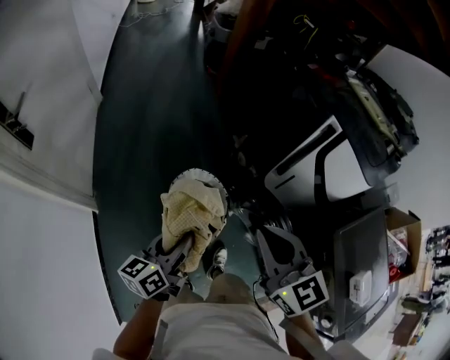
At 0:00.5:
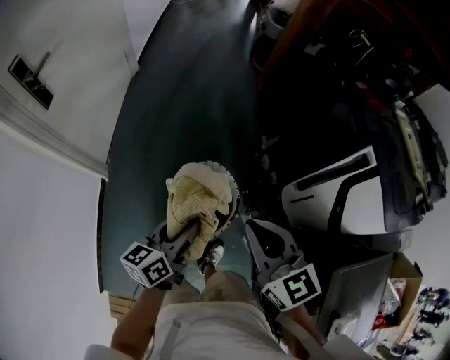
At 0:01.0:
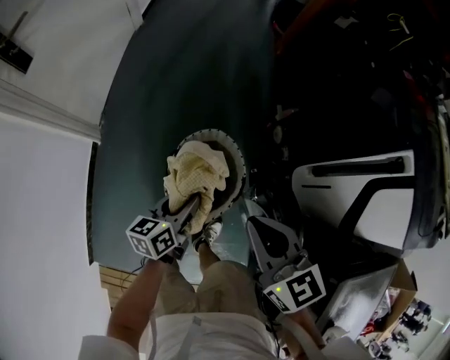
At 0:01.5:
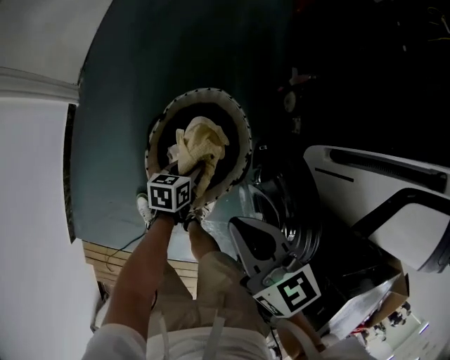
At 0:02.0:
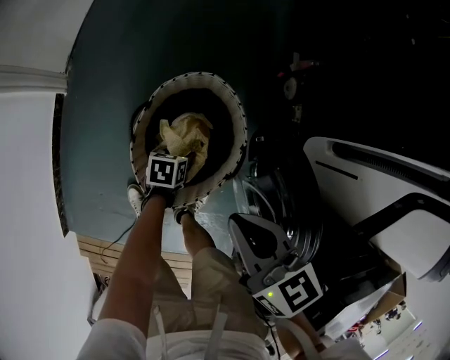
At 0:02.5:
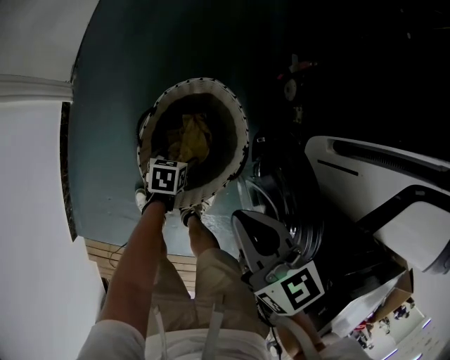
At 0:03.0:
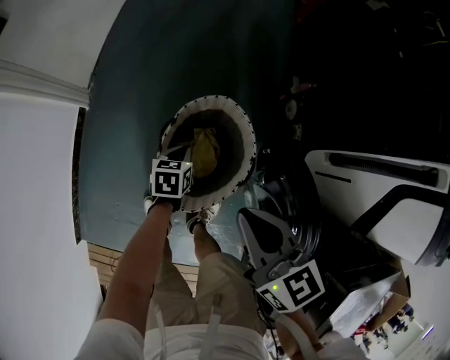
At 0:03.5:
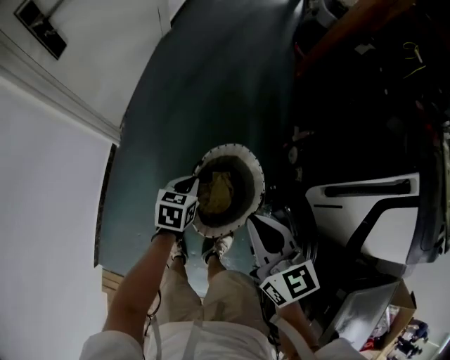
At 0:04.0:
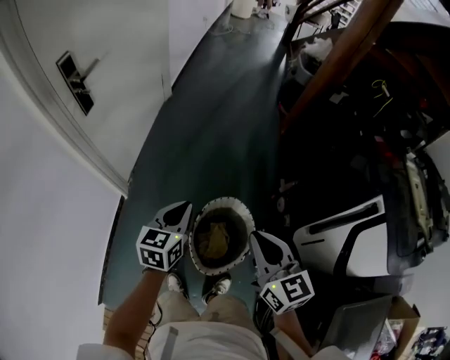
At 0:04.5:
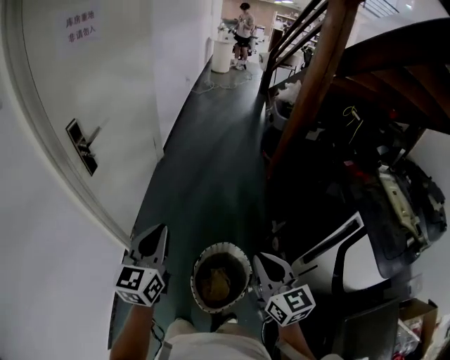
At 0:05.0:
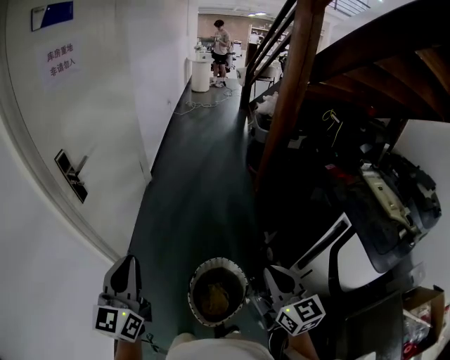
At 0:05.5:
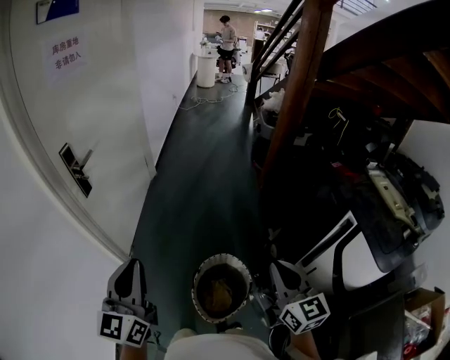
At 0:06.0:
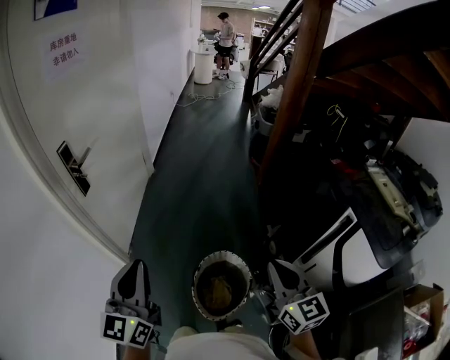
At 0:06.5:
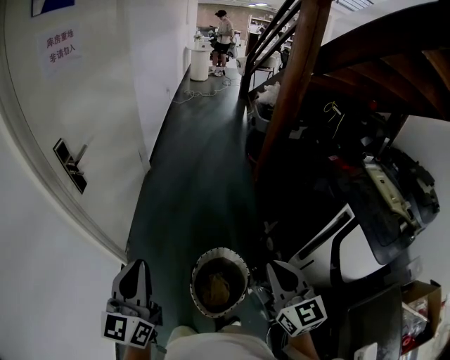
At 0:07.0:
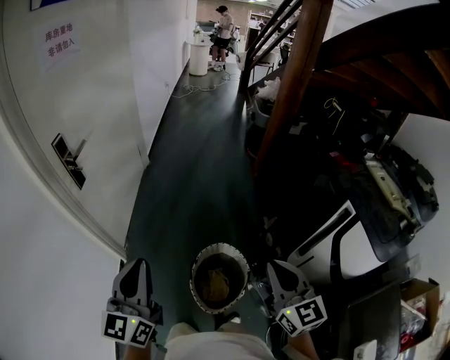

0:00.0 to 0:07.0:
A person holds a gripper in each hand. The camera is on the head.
0:00.0 to 0:02.0: The left gripper moves downward, about 60 cm, and tips its fingers downward by about 50 degrees; the right gripper shifts some 35 cm downward, and rotates roughly 40 degrees.
0:02.0 to 0:03.5: The right gripper shifts approximately 20 cm upward and to the left; the left gripper travels upward and to the left by approximately 35 cm, swivels approximately 30 degrees, and closes its fingers.
0:03.5 to 0:05.0: The left gripper goes roughly 50 cm upward, and angles its fingers upward, by roughly 50 degrees. The right gripper heads upward, covering approximately 25 cm, and swivels about 20 degrees.
0:05.0 to 0:07.0: There are only small adjustments of the grippers.

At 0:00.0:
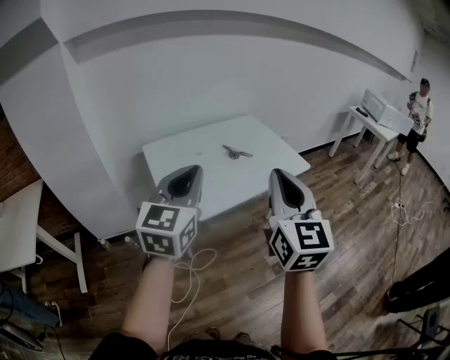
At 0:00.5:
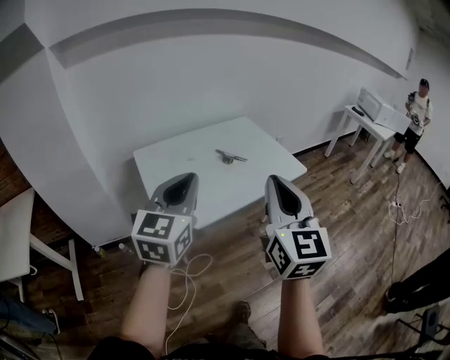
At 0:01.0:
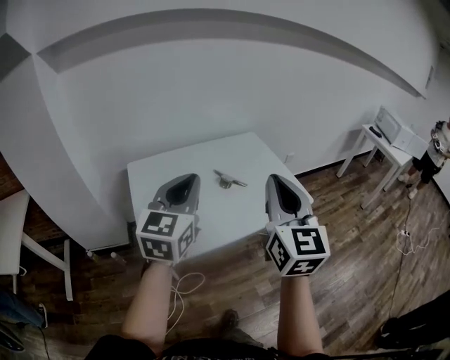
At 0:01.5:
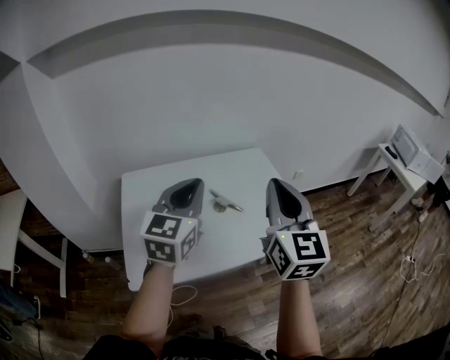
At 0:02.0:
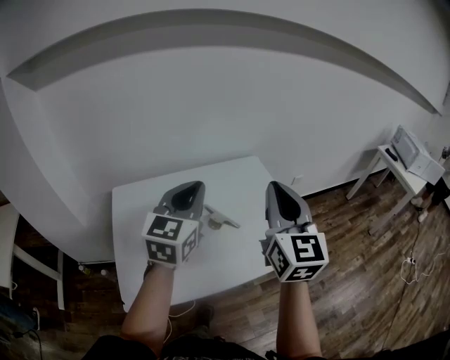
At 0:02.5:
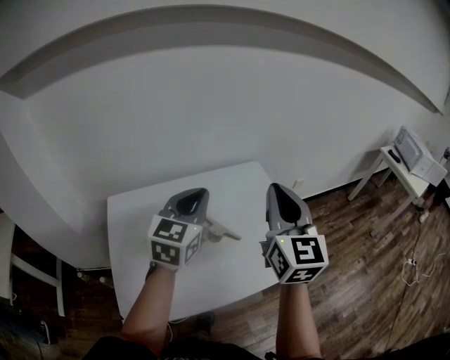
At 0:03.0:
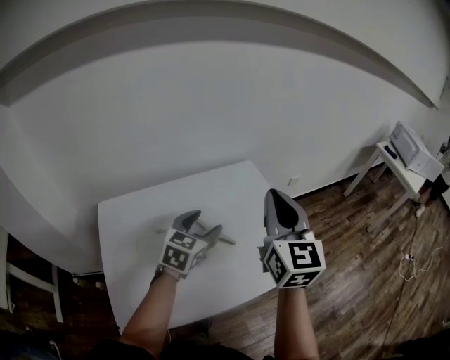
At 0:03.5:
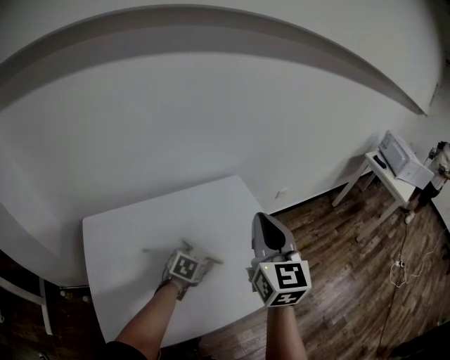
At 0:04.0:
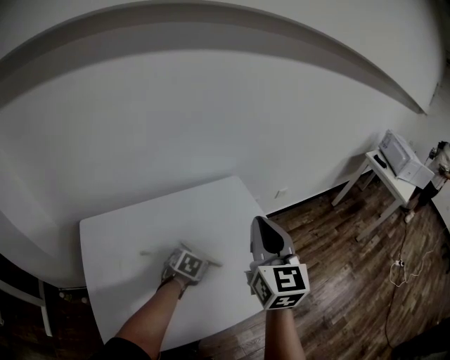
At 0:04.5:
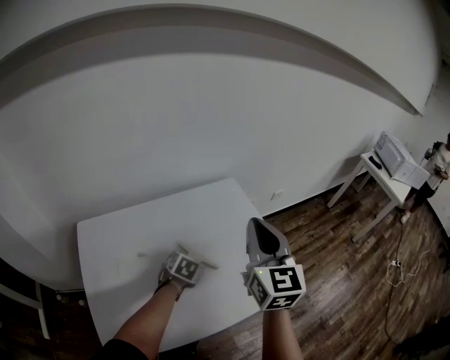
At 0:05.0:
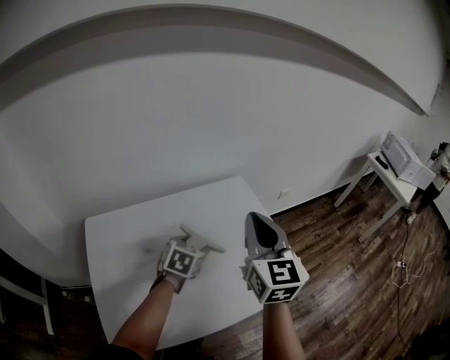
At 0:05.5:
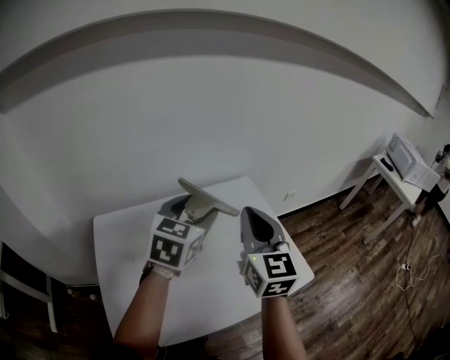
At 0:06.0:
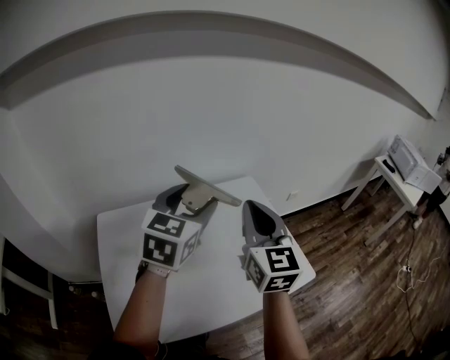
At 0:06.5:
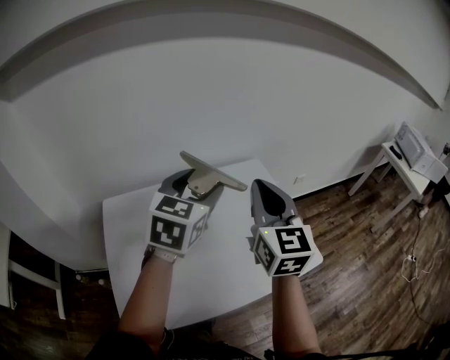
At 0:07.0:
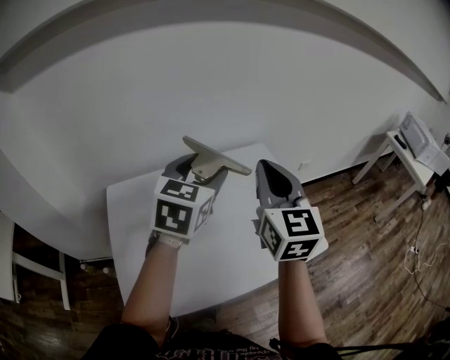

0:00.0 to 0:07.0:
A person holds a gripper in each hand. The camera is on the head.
0:00.0 to 0:02.0: Both grippers move forward, about 35 cm.
0:02.0 to 0:03.5: The left gripper is displaced downward by some 35 cm, tips its fingers downward by some 50 degrees, and opens its fingers. The right gripper goes some 10 cm forward and downward.
0:03.5 to 0:05.0: The left gripper heads upward, covering some 10 cm.
0:05.0 to 0:07.0: The right gripper shifts by approximately 5 cm, while the left gripper is displaced upward by approximately 25 cm, and swivels about 30 degrees.

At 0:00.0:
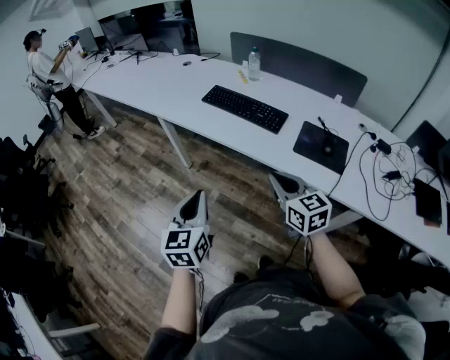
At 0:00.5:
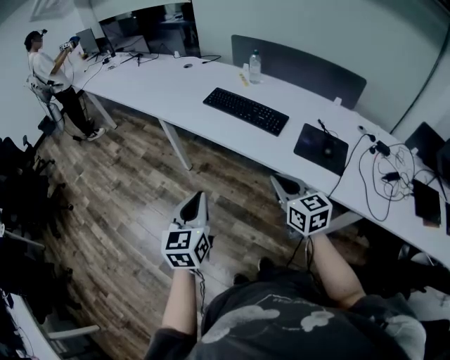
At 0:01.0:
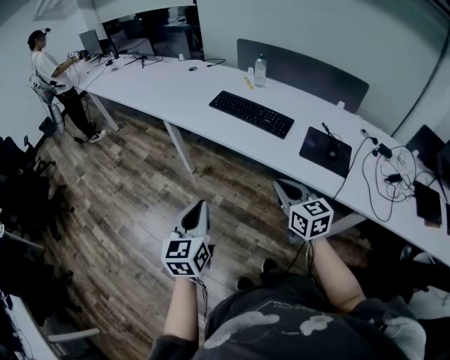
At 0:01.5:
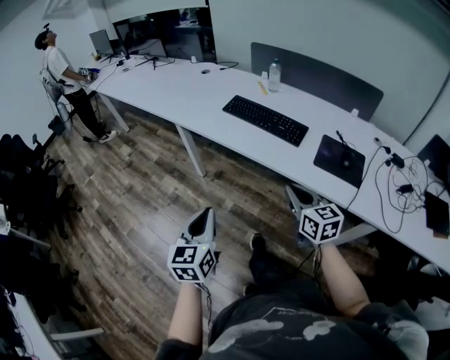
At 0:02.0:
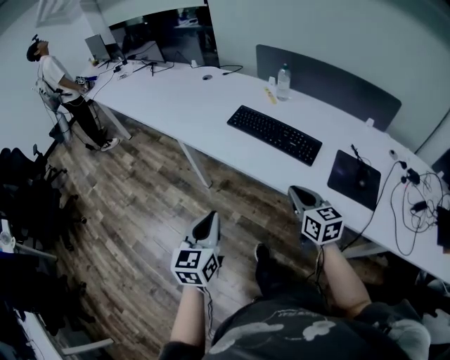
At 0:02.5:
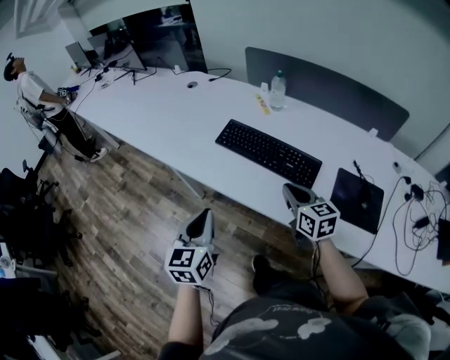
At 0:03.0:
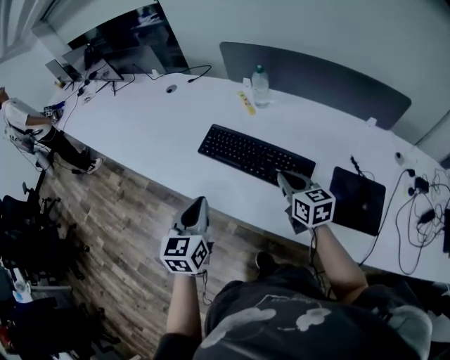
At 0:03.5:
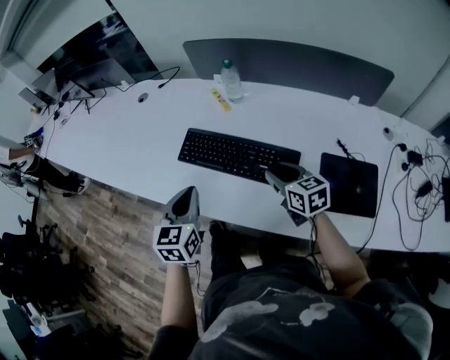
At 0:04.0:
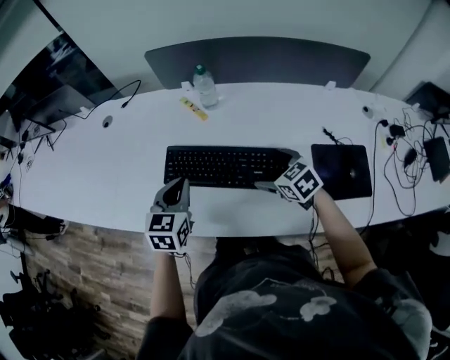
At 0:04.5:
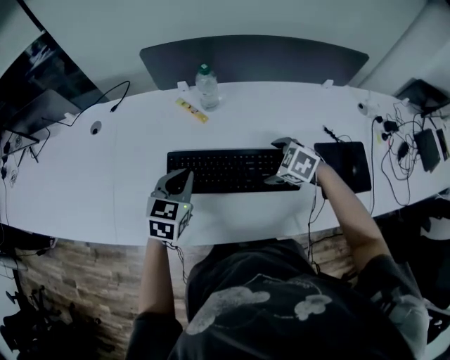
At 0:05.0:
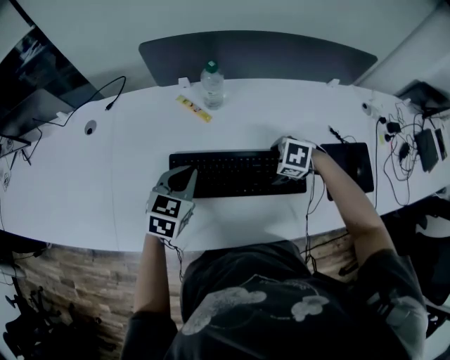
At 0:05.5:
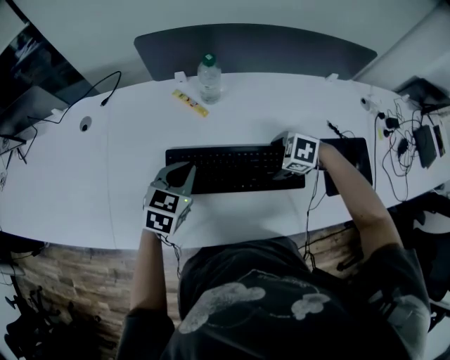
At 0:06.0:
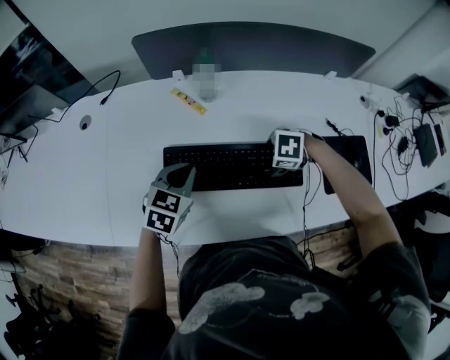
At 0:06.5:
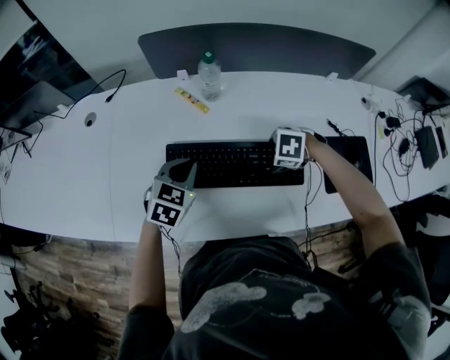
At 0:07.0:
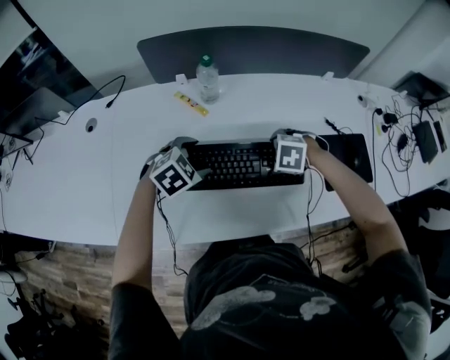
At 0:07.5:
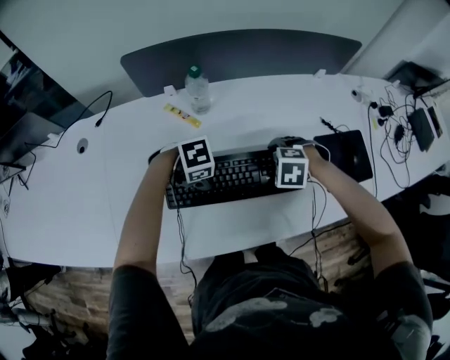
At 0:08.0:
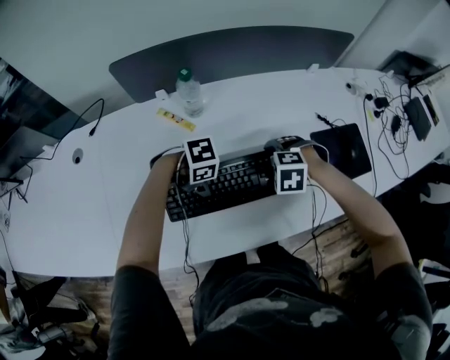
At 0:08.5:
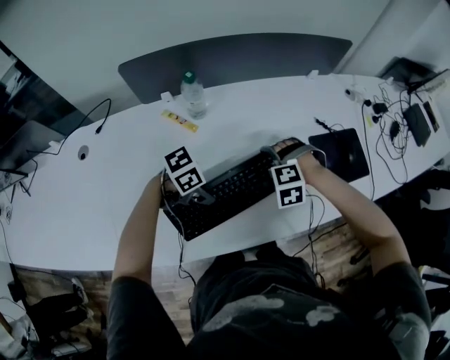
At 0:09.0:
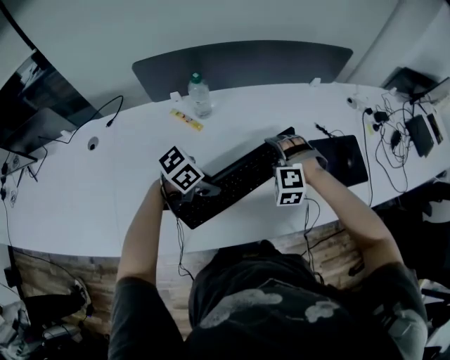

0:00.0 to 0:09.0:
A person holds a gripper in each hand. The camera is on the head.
0:00.0 to 0:02.0: The right gripper shifts approximately 15 cm forward. Meanwhile the left gripper shifts roughly 15 cm forward and to the left.
0:02.0 to 0:04.5: The left gripper travels forward by roughly 50 cm, and turns by approximately 50 degrees. Meanwhile the right gripper shifts approximately 35 cm forward and downward, angles its fingers downward, by approximately 50 degrees, and opens up.
0:04.5 to 0:07.0: The left gripper is displaced downward by roughly 5 cm, turns by some 50 degrees, and opens its fingers. Meanwhile the right gripper changes its angle by approximately 30 degrees.
0:07.0 to 0:09.0: The right gripper angles its fingers upward, by some 30 degrees; the left gripper changes place by about 10 cm, rotates about 40 degrees, and closes its fingers.

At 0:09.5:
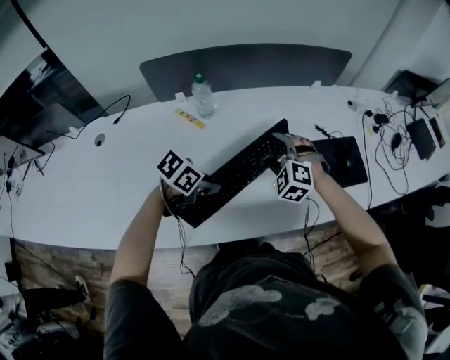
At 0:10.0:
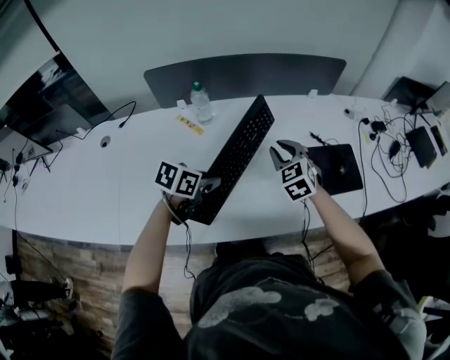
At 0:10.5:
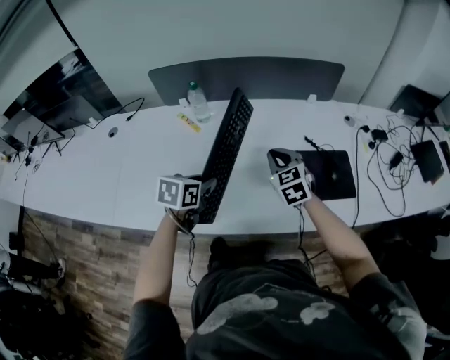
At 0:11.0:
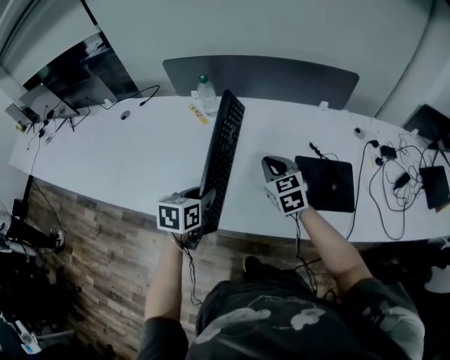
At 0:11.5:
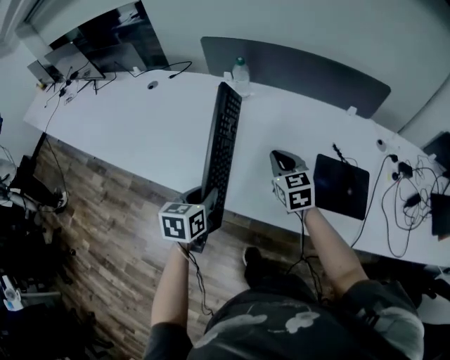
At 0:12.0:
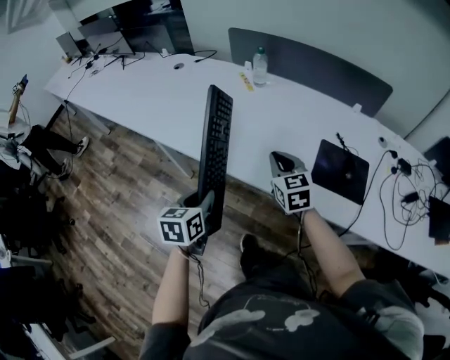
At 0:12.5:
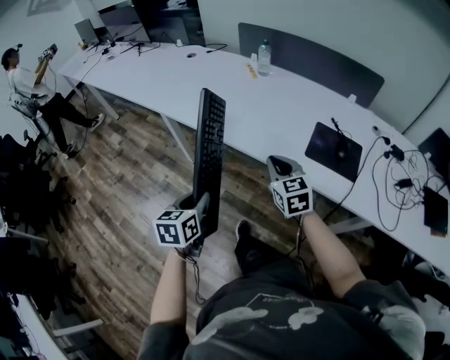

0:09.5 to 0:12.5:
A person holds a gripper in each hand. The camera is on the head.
0:09.5 to 0:11.0: The left gripper changes place by some 10 cm, and swivels roughly 60 degrees. The right gripper moves roughly 10 cm, rolls clockwise, seen from behind, by some 40 degrees, and closes.
0:11.0 to 0:12.5: The right gripper shifts by some 30 cm. The left gripper shifts by approximately 35 cm, and turns by about 30 degrees.
